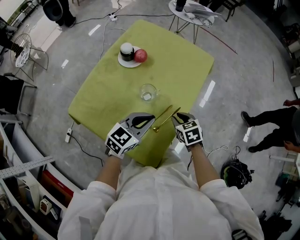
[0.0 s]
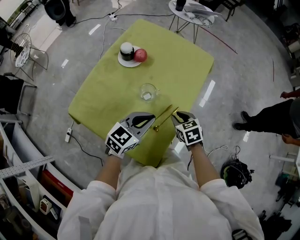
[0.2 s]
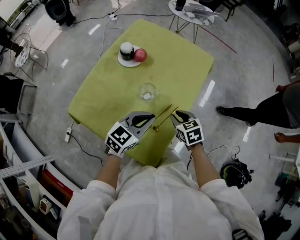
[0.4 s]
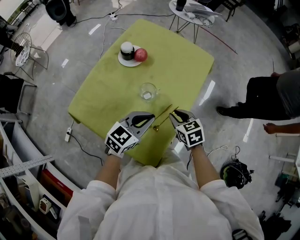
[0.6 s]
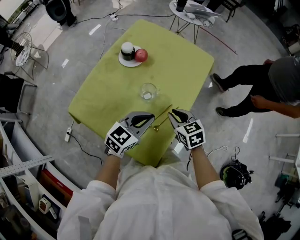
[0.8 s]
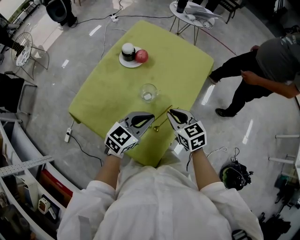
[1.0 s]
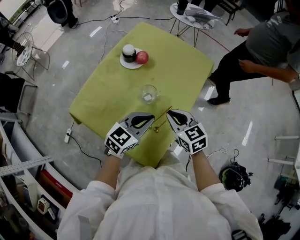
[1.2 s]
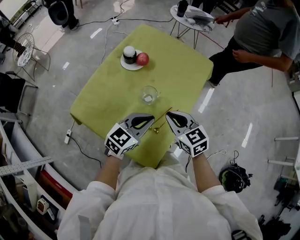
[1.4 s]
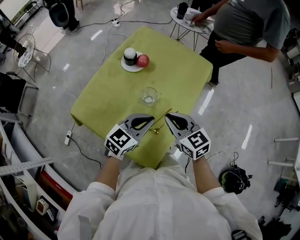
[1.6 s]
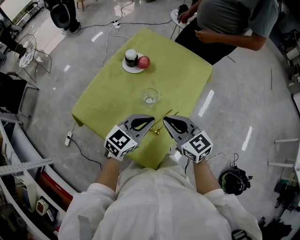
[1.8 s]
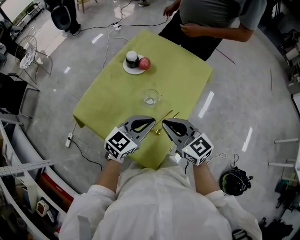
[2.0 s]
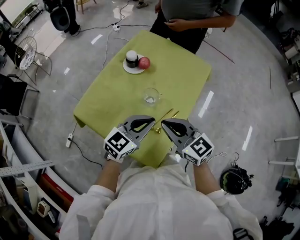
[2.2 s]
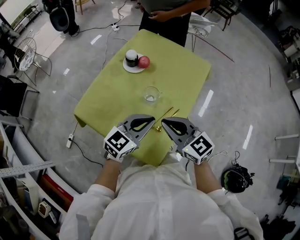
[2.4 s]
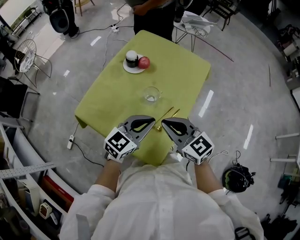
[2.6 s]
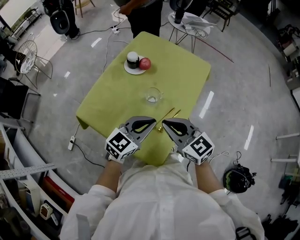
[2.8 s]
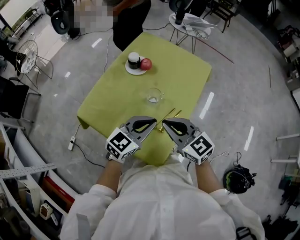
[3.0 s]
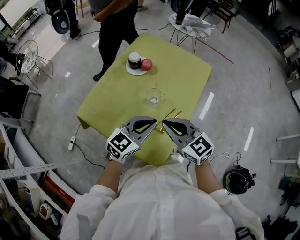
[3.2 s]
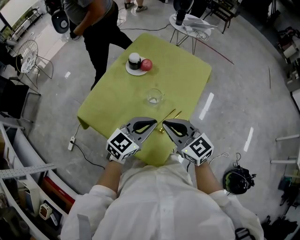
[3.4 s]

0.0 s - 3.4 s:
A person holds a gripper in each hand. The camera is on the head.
0.0 s - 1.6 s: The right gripper moves upward and to the left, approximately 15 cm, angles its fingers upward, by about 30 degrees, and closes.
1.6 s - 3.4 s: The right gripper shifts by about 5 cm.

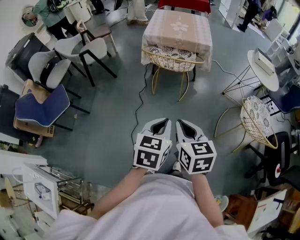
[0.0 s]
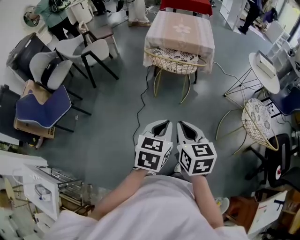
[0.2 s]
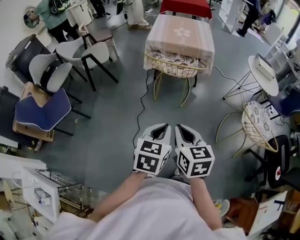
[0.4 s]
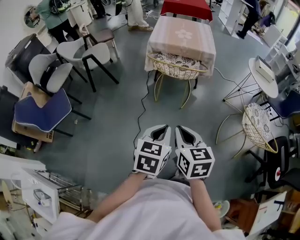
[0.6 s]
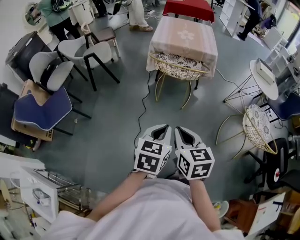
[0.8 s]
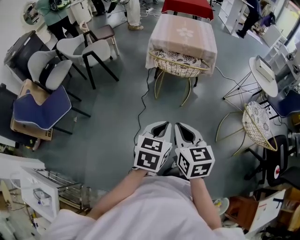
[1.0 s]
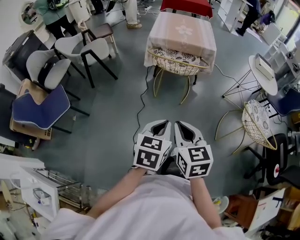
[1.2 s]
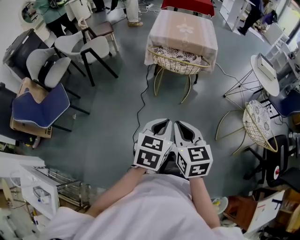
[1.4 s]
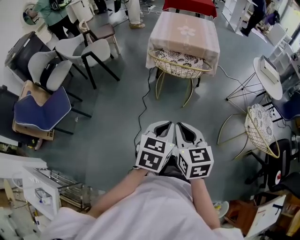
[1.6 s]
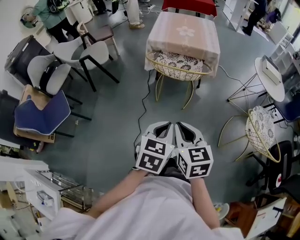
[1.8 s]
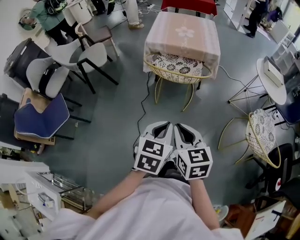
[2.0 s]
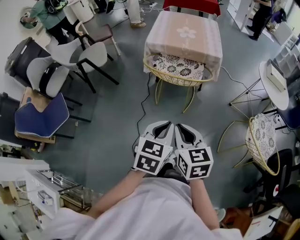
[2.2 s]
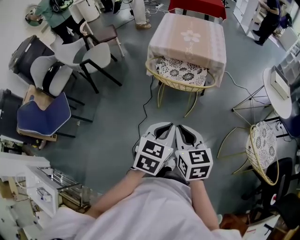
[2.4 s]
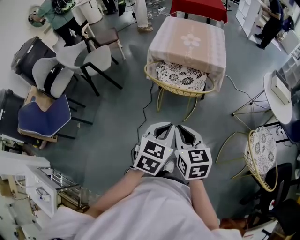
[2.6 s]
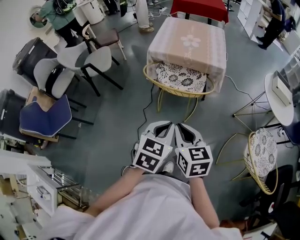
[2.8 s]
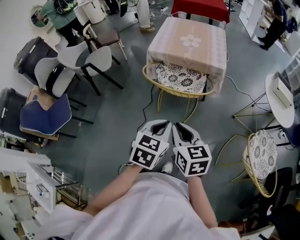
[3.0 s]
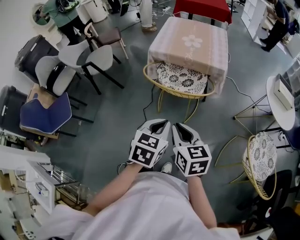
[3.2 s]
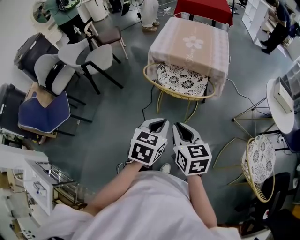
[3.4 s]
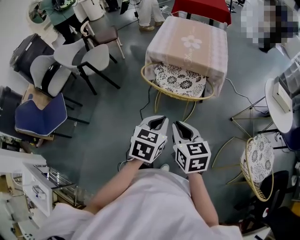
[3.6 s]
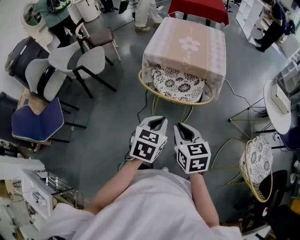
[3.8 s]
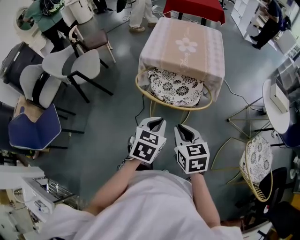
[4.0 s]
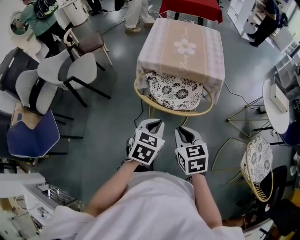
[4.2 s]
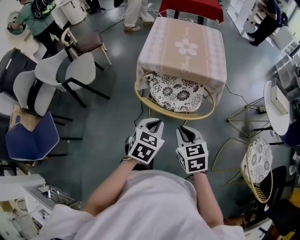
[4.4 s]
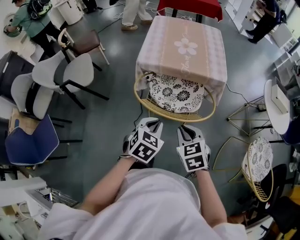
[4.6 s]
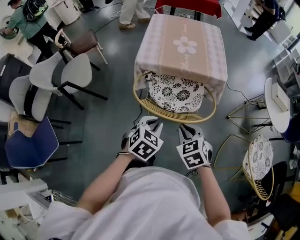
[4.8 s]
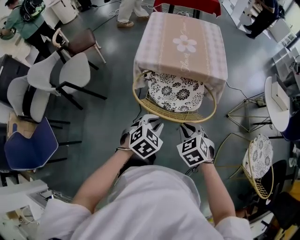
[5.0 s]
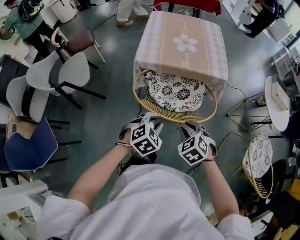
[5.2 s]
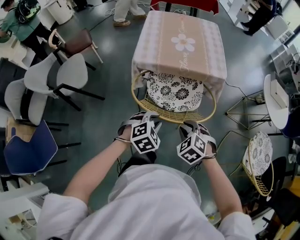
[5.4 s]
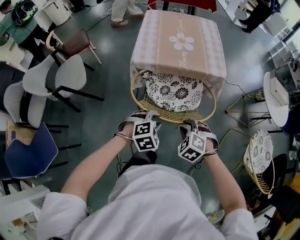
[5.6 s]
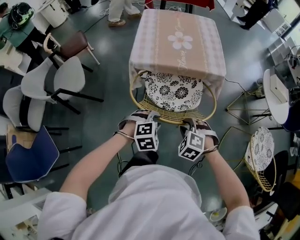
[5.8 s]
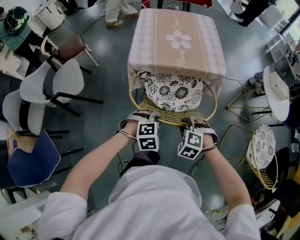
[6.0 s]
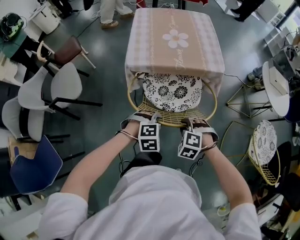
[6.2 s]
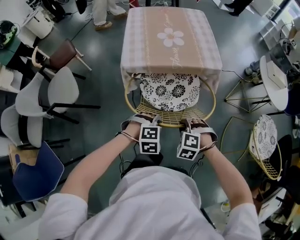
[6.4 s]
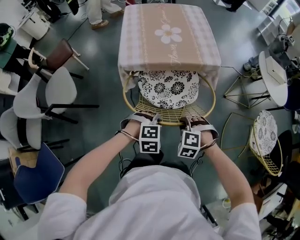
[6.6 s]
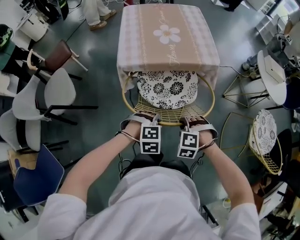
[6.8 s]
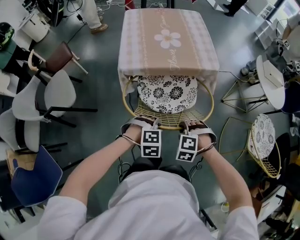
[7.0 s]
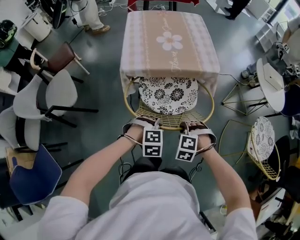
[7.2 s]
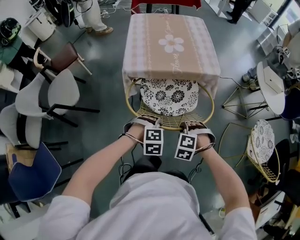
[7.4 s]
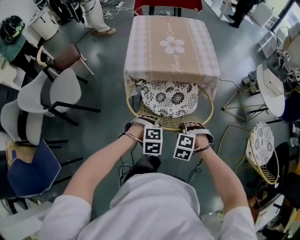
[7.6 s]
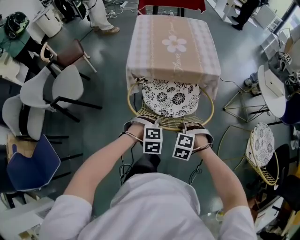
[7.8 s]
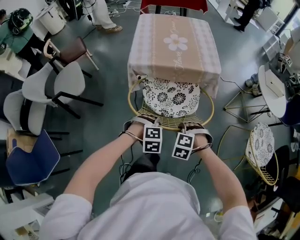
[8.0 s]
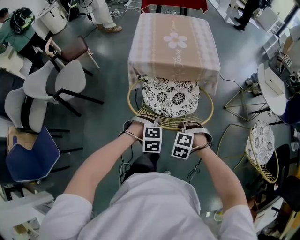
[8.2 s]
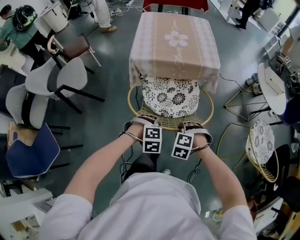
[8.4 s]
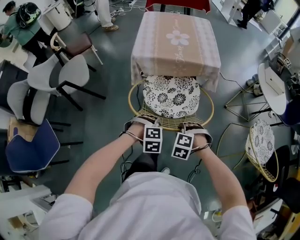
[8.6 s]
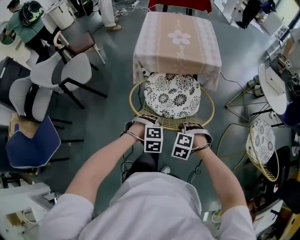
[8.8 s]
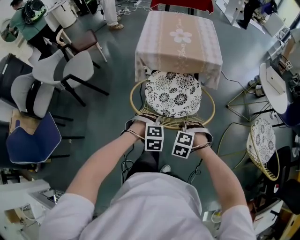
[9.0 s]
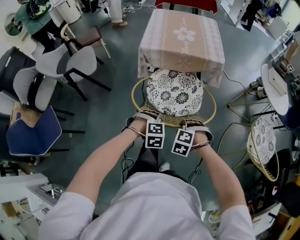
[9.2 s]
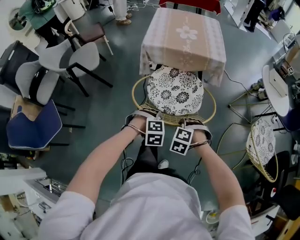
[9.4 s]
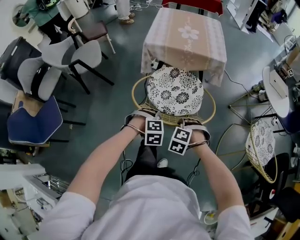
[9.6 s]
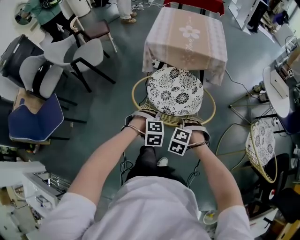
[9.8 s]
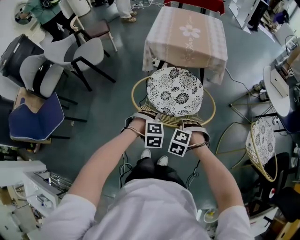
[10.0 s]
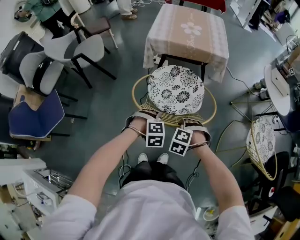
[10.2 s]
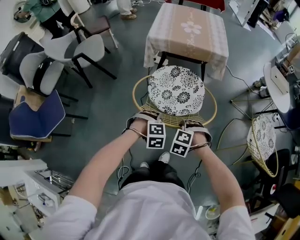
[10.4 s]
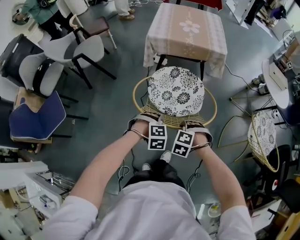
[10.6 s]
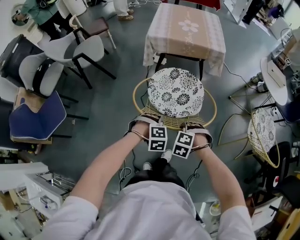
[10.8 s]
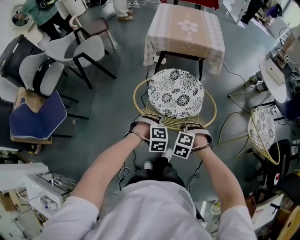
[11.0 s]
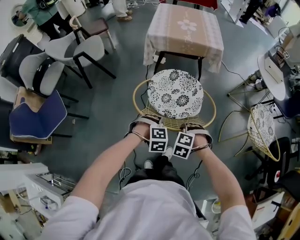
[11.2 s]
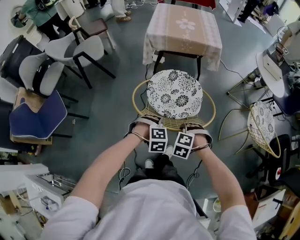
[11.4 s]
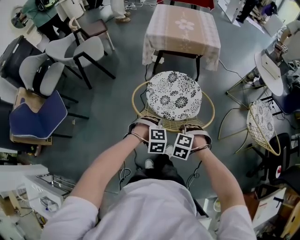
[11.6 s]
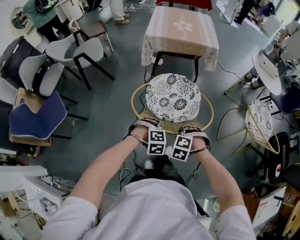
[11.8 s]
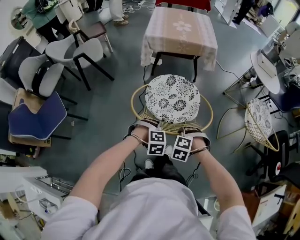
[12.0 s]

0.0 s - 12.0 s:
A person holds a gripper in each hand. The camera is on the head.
0.0 s - 1.6 s: The left gripper changes place by some 5 cm. The right gripper moves to the left, some 5 cm.
1.6 s - 3.0 s: The two grippers go some 20 cm forward and to the right.
3.0 s - 4.4 s: The left gripper moves forward and to the left, roughly 20 cm. The right gripper goes approximately 20 cm forward and downward, and rotates some 20 degrees.
4.4 s - 6.0 s: Both grippers move downward and forward, about 15 cm. The left gripper rotates around the line of its fingers by some 60 degrees, clockwise from behind, and opens its fingers. Meanwhile the right gripper rolls counterclockwise, seen from behind, by about 50 degrees.
6.0 s - 7.6 s: The grippers move only a little.
7.6 s - 9.0 s: Both grippers move backward, roughly 15 cm.
9.0 s - 10.4 s: Both grippers travel together backward, roughly 10 cm.
10.4 s - 12.0 s: The grippers both shift backward by some 15 cm.

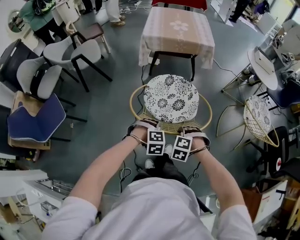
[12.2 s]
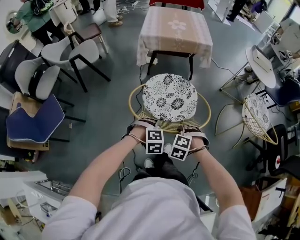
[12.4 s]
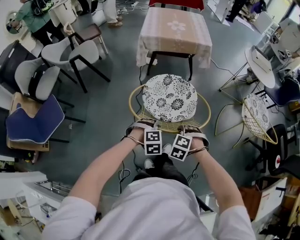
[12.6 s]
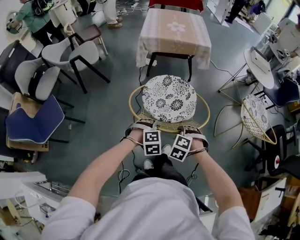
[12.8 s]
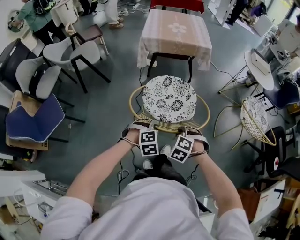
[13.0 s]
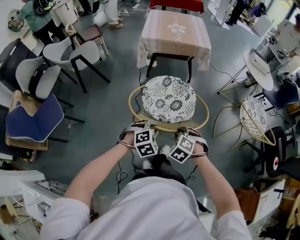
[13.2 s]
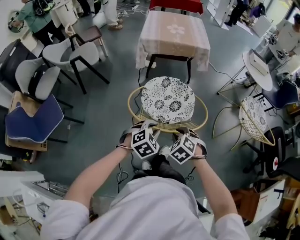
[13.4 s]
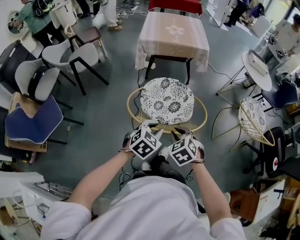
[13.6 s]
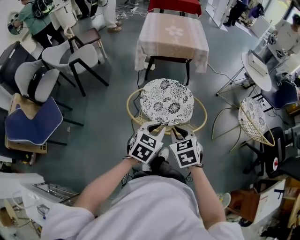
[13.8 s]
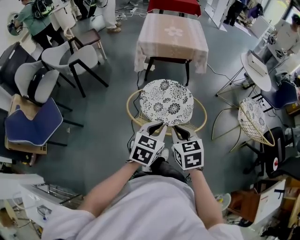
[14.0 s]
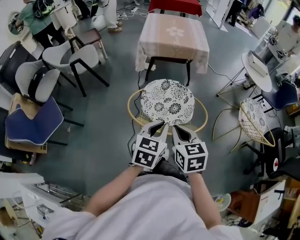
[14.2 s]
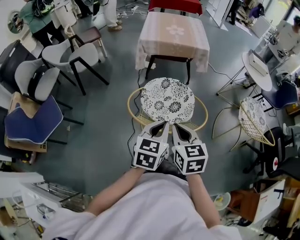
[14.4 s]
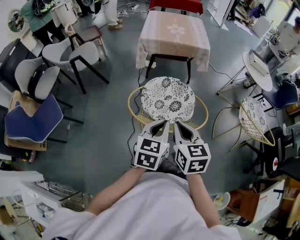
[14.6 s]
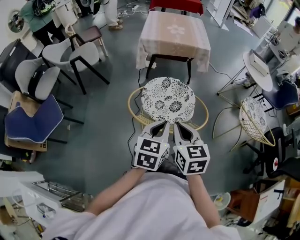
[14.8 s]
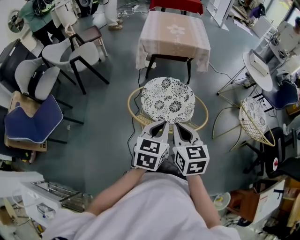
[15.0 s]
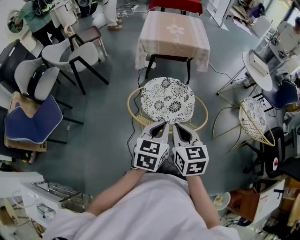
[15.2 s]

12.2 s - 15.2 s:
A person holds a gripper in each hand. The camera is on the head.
12.2 s - 13.8 s: The two grippers go some 15 cm upward. The left gripper twists about 60 degrees counterclockwise, seen from behind. The right gripper rotates around the line of its fingers by some 60 degrees, clockwise from behind.
13.8 s - 15.2 s: Both grippers move upward, approximately 5 cm. The right gripper changes its angle by about 20 degrees.

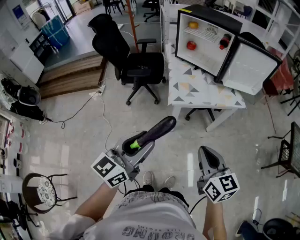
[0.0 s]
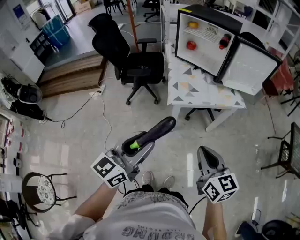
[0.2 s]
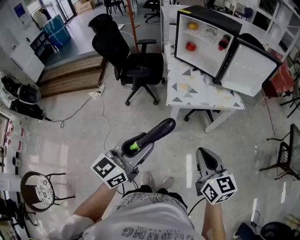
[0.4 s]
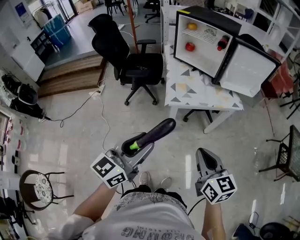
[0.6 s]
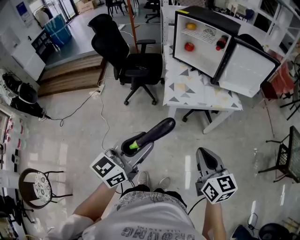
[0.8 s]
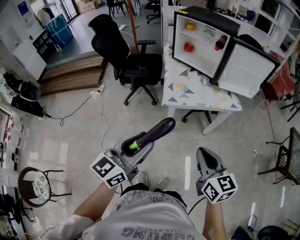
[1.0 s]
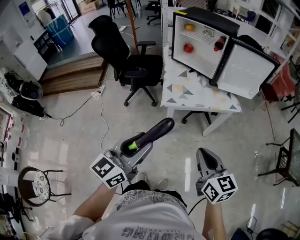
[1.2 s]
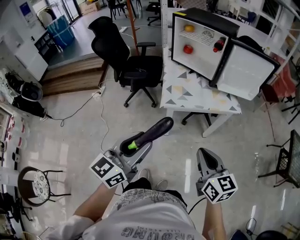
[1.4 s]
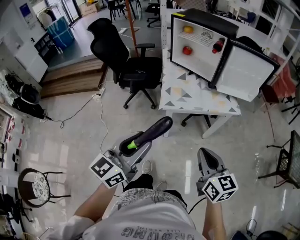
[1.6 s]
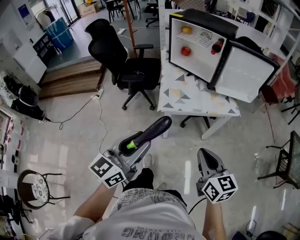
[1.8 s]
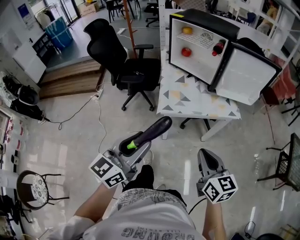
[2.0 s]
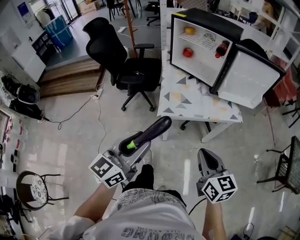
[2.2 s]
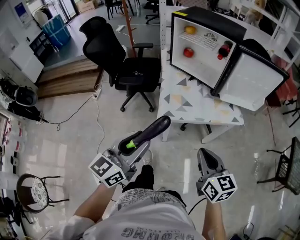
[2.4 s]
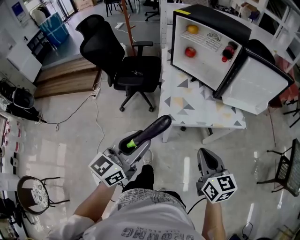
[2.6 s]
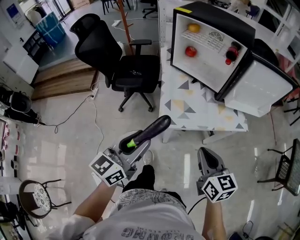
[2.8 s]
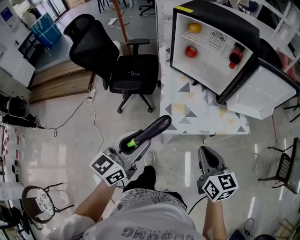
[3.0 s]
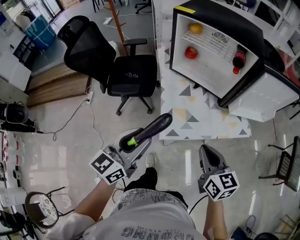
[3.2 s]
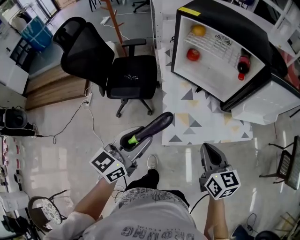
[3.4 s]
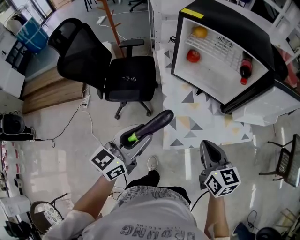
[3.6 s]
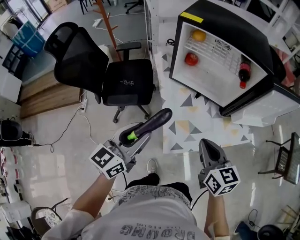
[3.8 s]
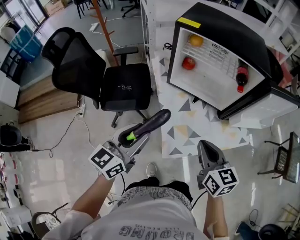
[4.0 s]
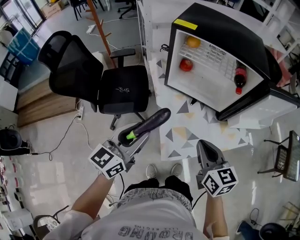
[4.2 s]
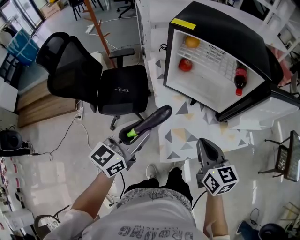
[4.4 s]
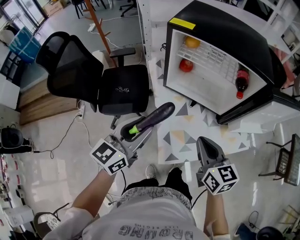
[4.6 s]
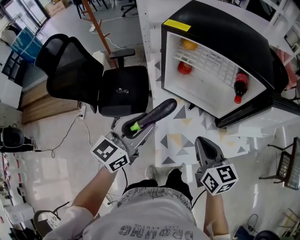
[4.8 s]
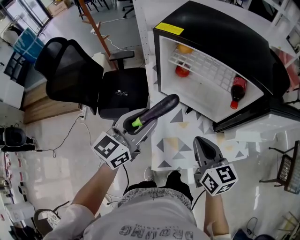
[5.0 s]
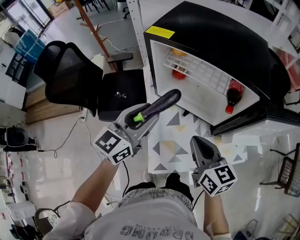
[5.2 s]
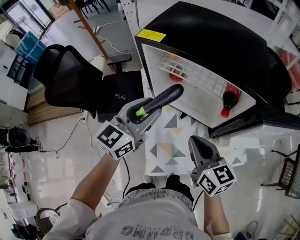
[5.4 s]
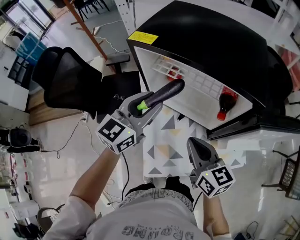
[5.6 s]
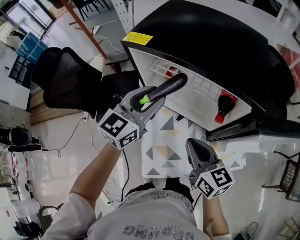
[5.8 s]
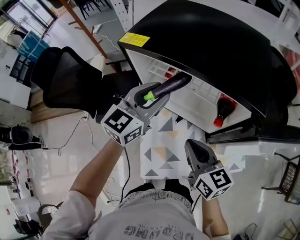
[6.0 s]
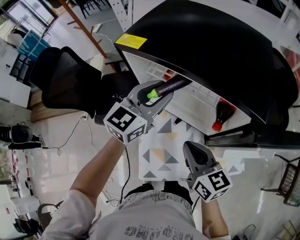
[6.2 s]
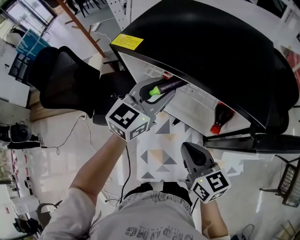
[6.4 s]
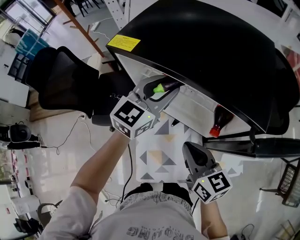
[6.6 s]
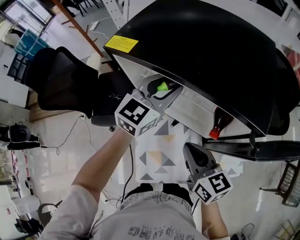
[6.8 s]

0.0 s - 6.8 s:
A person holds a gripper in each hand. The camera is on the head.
0.0 s - 1.4 s: The grippers both shift to the right by about 5 cm.
1.4 s - 2.8 s: The grippers both shift forward by approximately 20 cm.
2.8 s - 4.0 s: The grippers both shift forward and to the left by some 25 cm.
4.0 s - 5.4 s: The right gripper heads forward and to the right, covering some 15 cm, while the left gripper goes approximately 25 cm forward and to the right.
5.4 s - 6.8 s: The right gripper is displaced forward by approximately 5 cm. The left gripper is displaced forward and to the right by approximately 20 cm.
